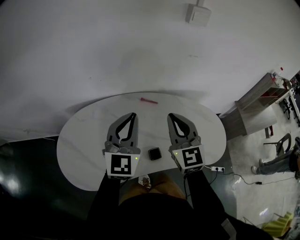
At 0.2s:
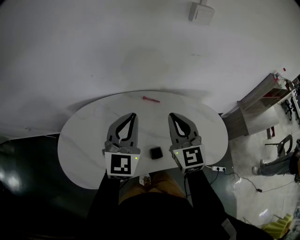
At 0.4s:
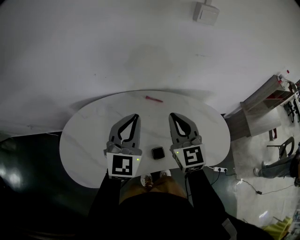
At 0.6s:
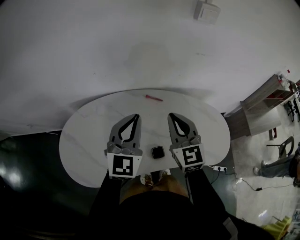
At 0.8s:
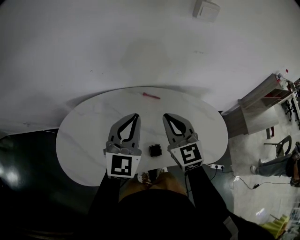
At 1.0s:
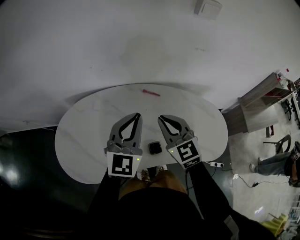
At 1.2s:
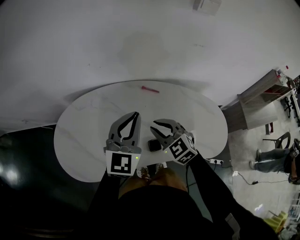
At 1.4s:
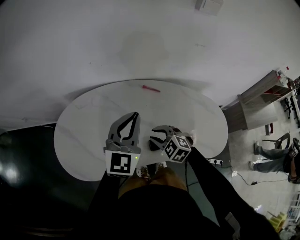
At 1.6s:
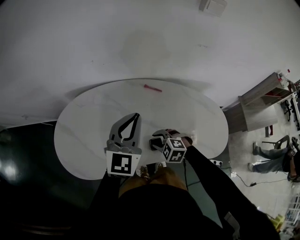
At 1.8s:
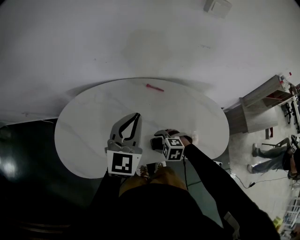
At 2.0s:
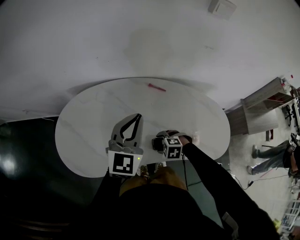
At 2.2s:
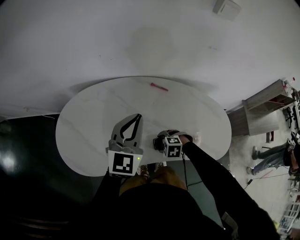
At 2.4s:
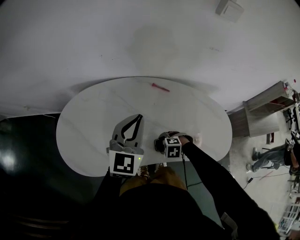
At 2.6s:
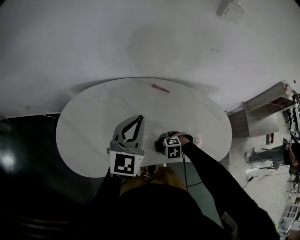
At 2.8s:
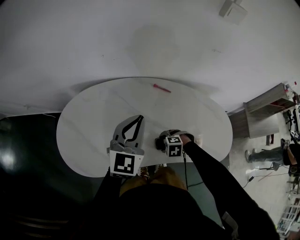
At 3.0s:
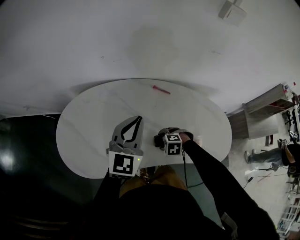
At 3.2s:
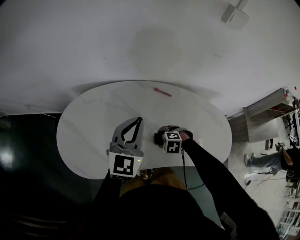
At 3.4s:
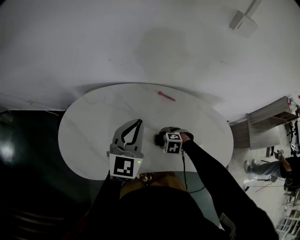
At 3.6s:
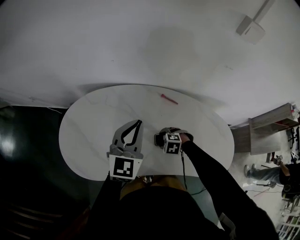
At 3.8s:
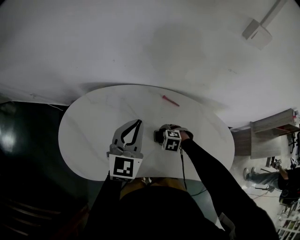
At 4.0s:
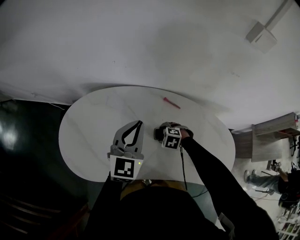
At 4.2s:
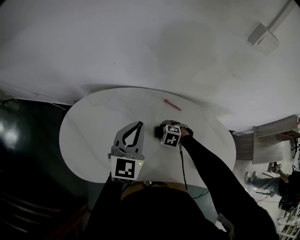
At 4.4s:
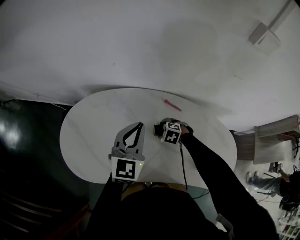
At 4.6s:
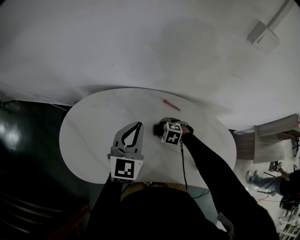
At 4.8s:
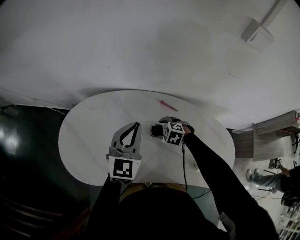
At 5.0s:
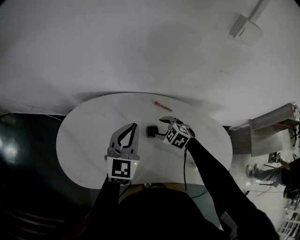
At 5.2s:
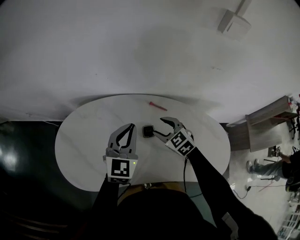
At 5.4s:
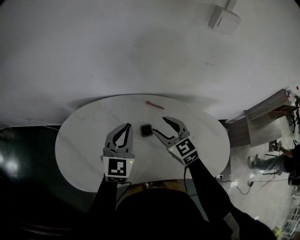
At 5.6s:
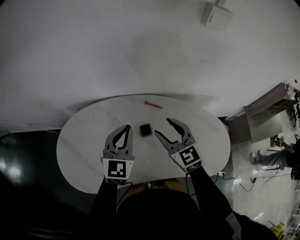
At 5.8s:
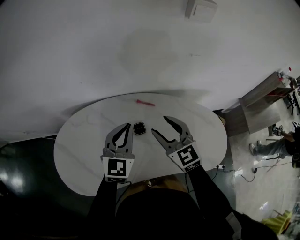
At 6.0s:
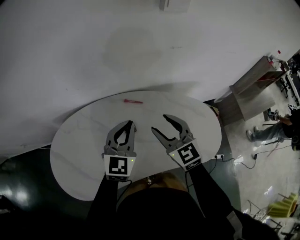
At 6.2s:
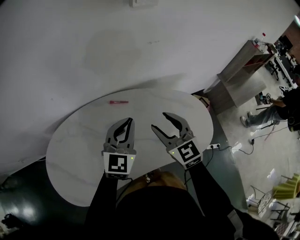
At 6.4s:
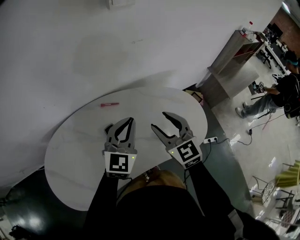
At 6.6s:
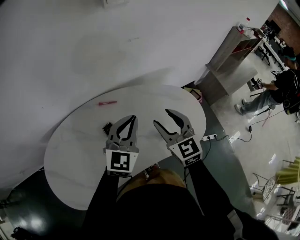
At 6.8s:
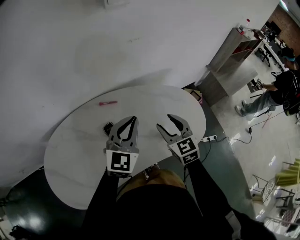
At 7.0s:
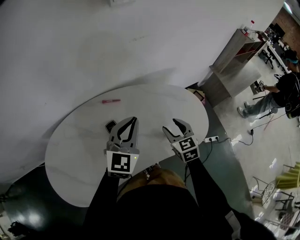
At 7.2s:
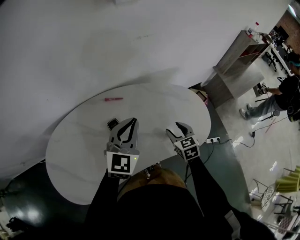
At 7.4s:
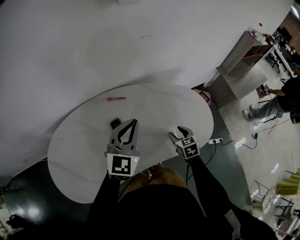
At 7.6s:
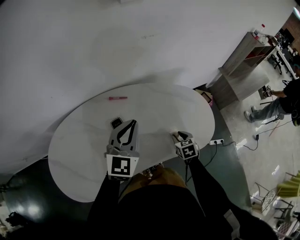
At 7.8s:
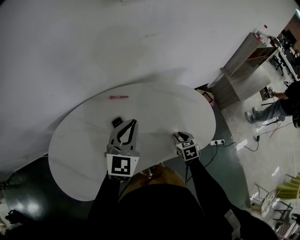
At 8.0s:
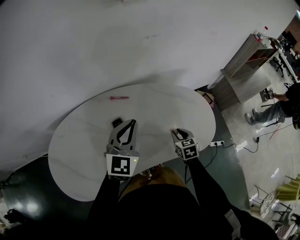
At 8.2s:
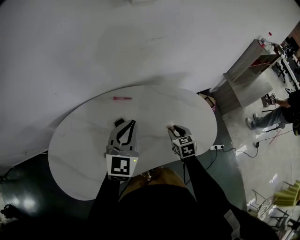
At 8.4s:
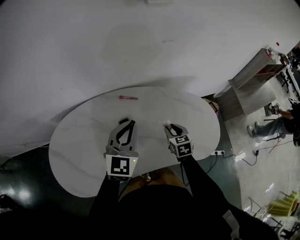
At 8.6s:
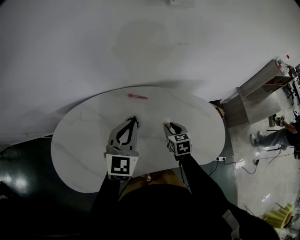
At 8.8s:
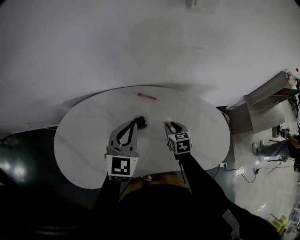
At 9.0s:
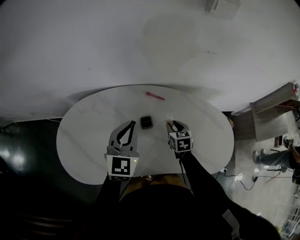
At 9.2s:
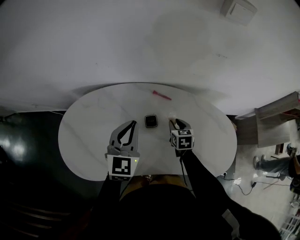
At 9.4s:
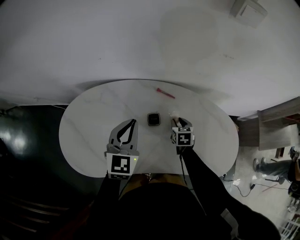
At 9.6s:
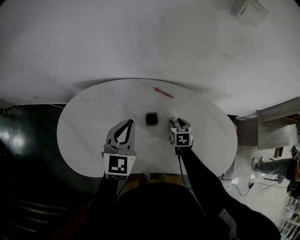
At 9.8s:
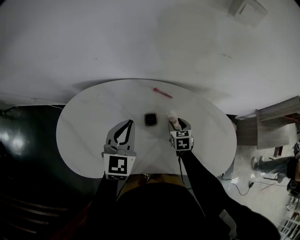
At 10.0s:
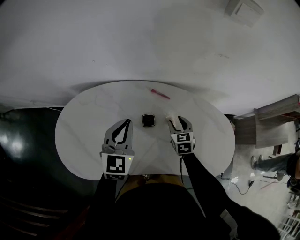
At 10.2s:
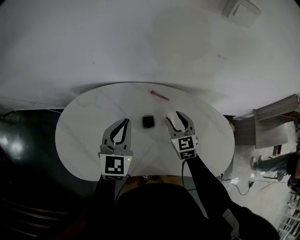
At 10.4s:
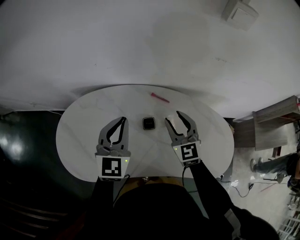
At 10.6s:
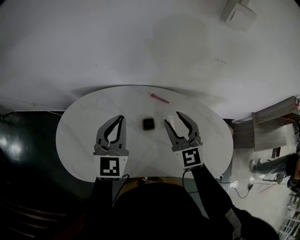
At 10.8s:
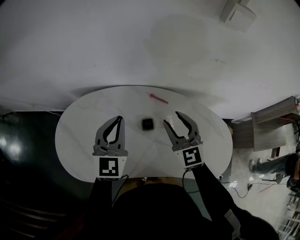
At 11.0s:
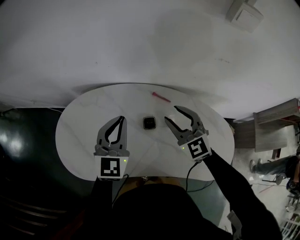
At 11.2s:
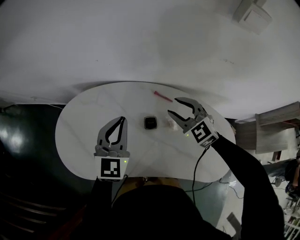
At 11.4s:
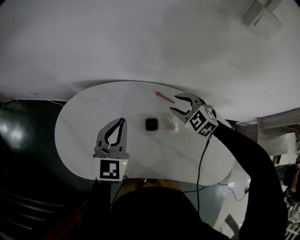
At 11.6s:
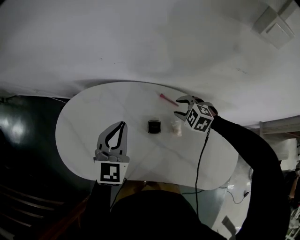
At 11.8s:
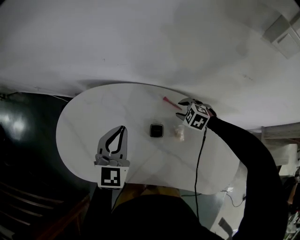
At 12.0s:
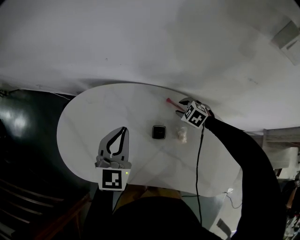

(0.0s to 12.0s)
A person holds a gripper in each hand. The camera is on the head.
0.0s - 1.6s: The right gripper is displaced downward by about 25 cm, tips its fingers downward by approximately 50 degrees, and opens its fingers. Meanwhile the left gripper changes place by some 5 cm.
1.6s - 3.0s: The right gripper heads downward, covering some 10 cm, swivels some 20 degrees, and opens its fingers.
3.0s - 4.4s: The left gripper shifts by roughly 10 cm. The right gripper changes place by about 15 cm.
4.4s - 6.0s: The left gripper changes place by about 10 cm, and changes its angle by roughly 20 degrees. Meanwhile the right gripper goes roughly 30 cm upward, and angles its fingers upward, by roughly 60 degrees.
6.0s - 7.6s: The right gripper travels downward and to the right by roughly 35 cm, and tilts its fingers roughly 40 degrees downward. The left gripper shifts about 10 cm to the right.
7.6s - 9.0s: The right gripper moves to the left and forward, some 20 cm, while the left gripper moves to the left, approximately 15 cm, and swivels roughly 20 degrees.
9.0s - 10.4s: The right gripper travels upward by some 15 cm, and swivels roughly 40 degrees. The left gripper moves approximately 5 cm.
10.4s - 12.0s: The right gripper heads downward and forward, covering roughly 25 cm, and tips its fingers downward by some 50 degrees. Meanwhile the left gripper ends up approximately 5 cm from where it was.

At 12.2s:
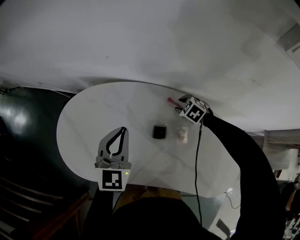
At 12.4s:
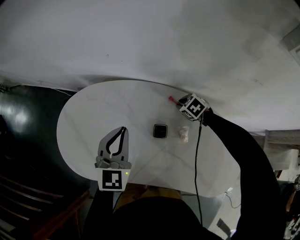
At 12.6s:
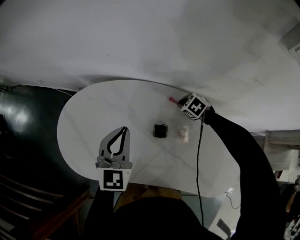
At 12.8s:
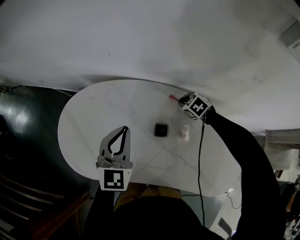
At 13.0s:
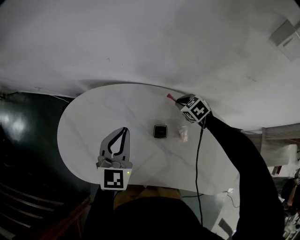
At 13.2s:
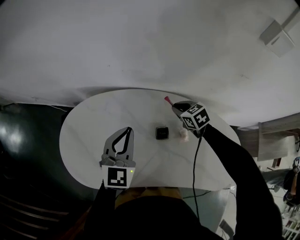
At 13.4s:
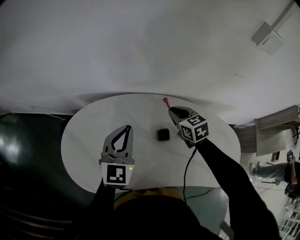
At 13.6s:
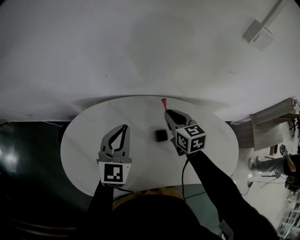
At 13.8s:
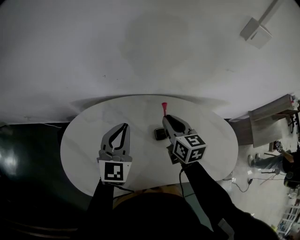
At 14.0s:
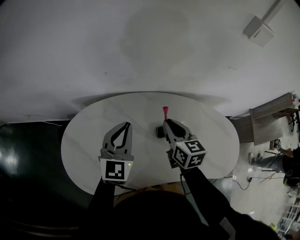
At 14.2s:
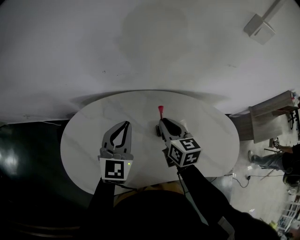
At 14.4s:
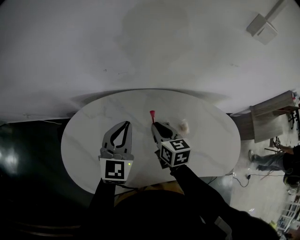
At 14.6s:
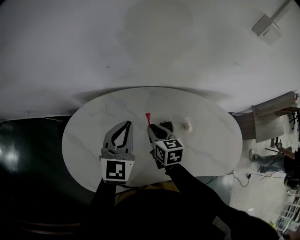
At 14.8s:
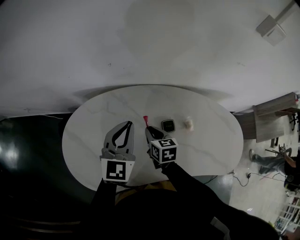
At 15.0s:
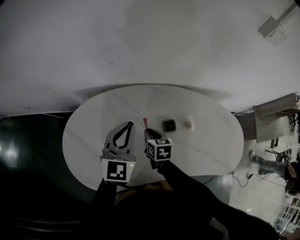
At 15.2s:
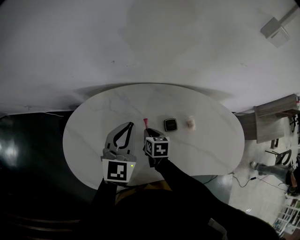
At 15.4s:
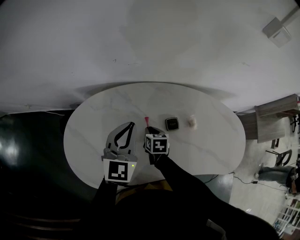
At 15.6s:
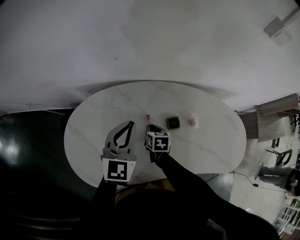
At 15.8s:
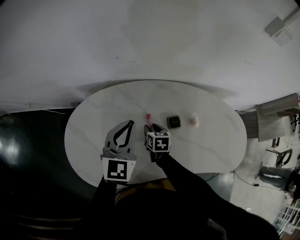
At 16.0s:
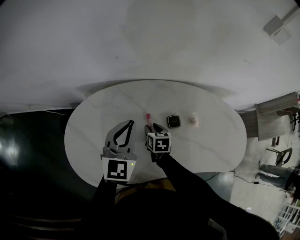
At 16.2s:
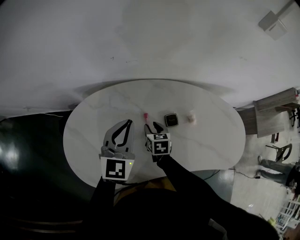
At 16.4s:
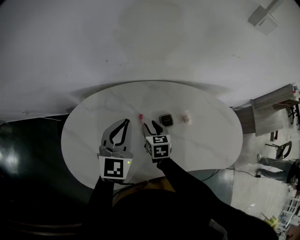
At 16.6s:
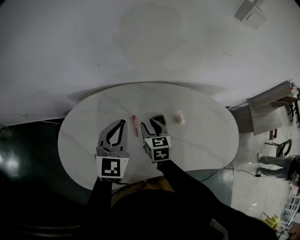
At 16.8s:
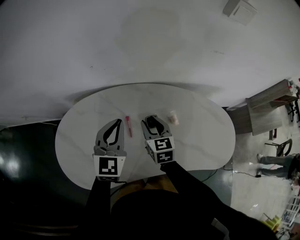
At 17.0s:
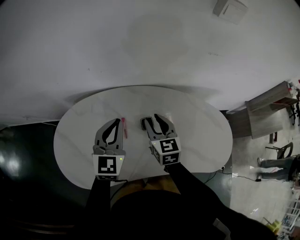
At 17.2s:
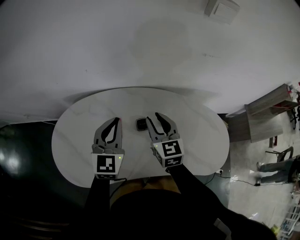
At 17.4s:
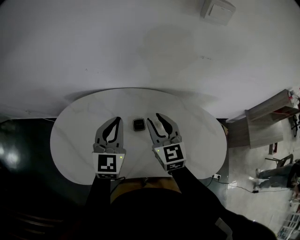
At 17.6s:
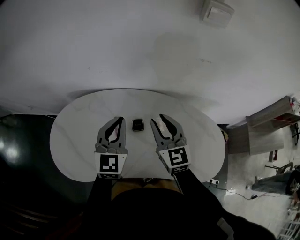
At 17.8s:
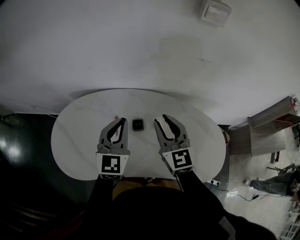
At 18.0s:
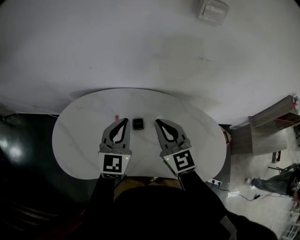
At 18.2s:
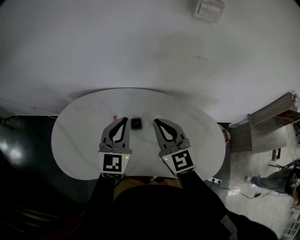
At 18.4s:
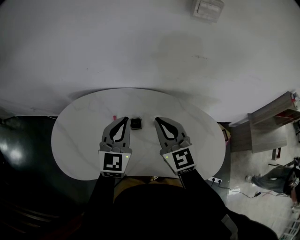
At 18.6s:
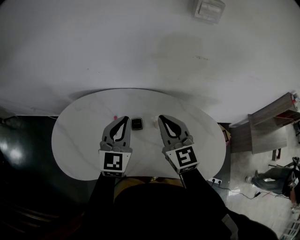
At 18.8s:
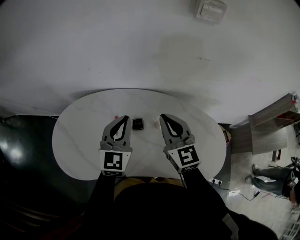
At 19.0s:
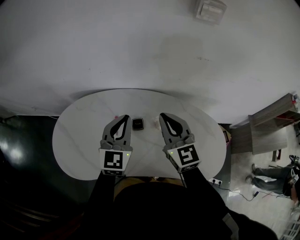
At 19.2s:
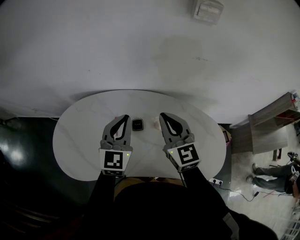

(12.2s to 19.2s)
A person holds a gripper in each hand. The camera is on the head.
12.2s - 13.6s: The right gripper is displaced upward by some 20 cm, tips its fingers upward by about 40 degrees, and closes. The left gripper moves roughly 5 cm.
13.6s - 15.0s: The right gripper moves downward, to the left and backward, approximately 20 cm, and rotates some 20 degrees.
15.0s - 16.4s: The right gripper opens.
16.4s - 17.8s: The left gripper shifts about 15 cm to the right. Meanwhile the right gripper travels upward and to the right by roughly 30 cm, and points its fingers some 40 degrees further upward.
17.8s - 19.2s: The right gripper closes.

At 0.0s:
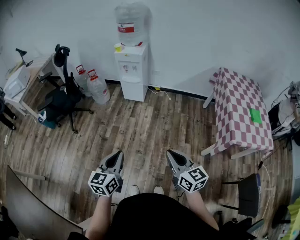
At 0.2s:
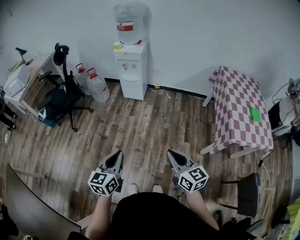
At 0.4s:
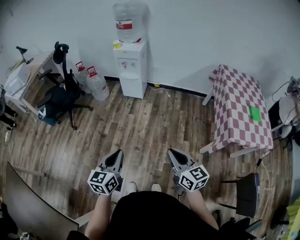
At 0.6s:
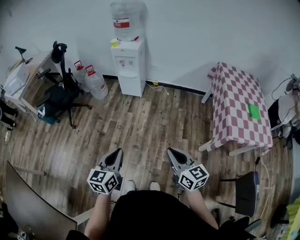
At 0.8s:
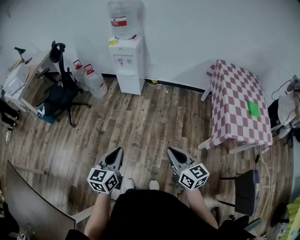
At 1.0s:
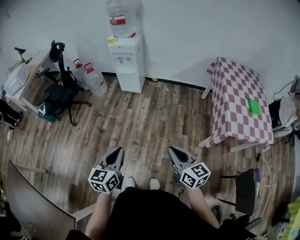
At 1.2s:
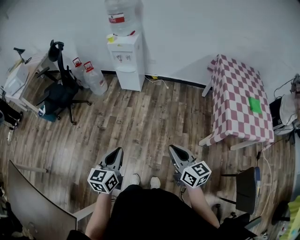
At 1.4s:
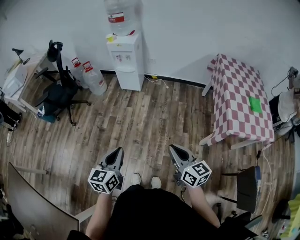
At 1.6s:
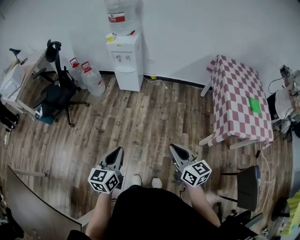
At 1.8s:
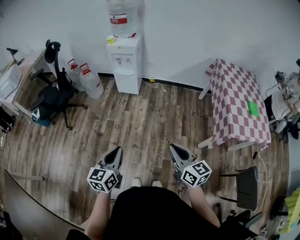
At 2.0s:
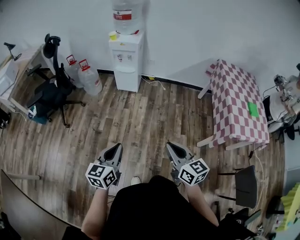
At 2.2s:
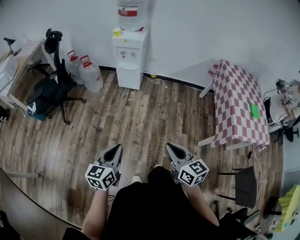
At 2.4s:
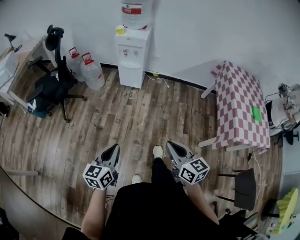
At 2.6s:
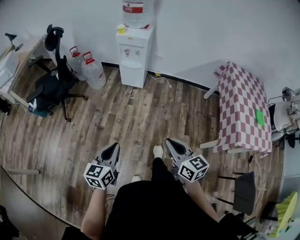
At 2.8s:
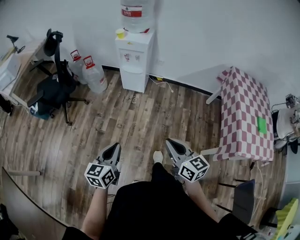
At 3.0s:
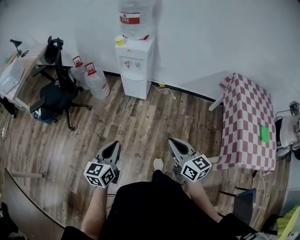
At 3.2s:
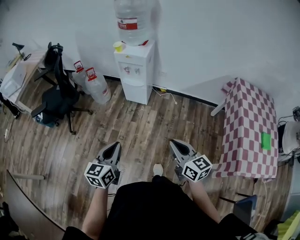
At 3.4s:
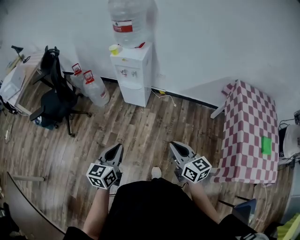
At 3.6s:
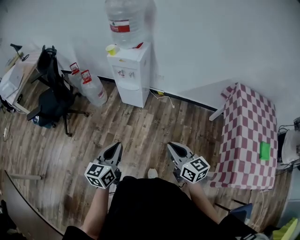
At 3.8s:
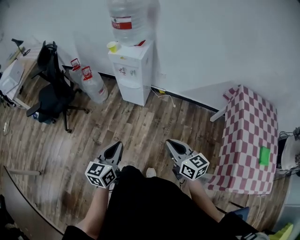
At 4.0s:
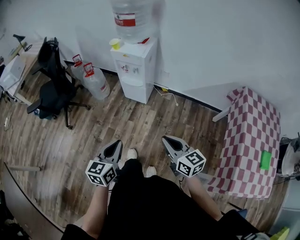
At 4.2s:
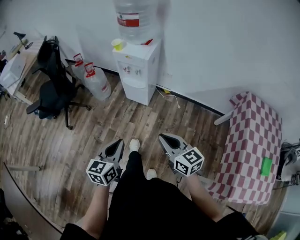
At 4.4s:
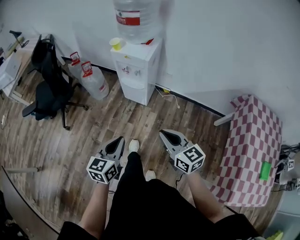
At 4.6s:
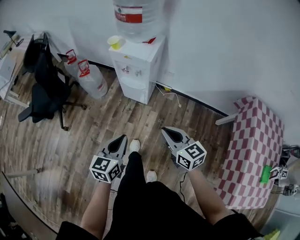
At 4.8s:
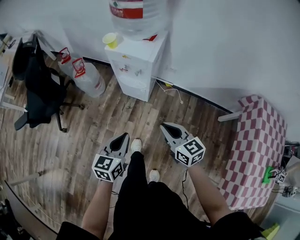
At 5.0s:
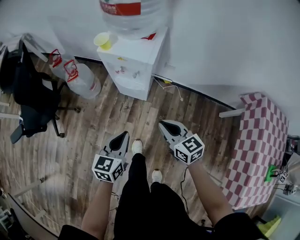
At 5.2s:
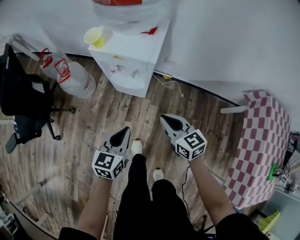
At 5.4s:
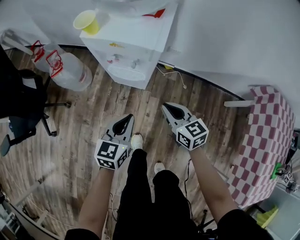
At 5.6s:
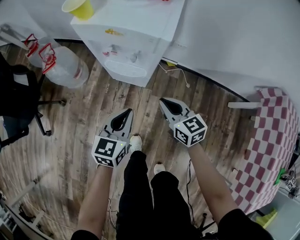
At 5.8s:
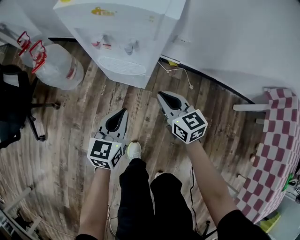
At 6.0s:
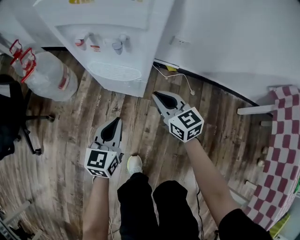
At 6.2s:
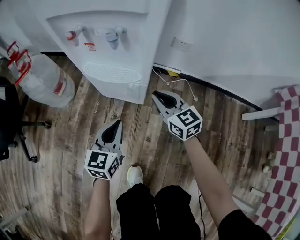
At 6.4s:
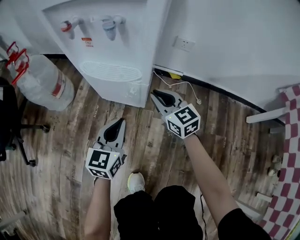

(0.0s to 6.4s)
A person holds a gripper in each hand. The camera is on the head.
0.0s - 1.6s: The right gripper travels to the right by roughly 5 cm.
1.6s - 3.2s: The two grippers go about 25 cm forward.
3.2s - 4.8s: The grippers both shift forward by some 35 cm.
4.8s - 6.4s: The two grippers go about 50 cm downward and forward.
